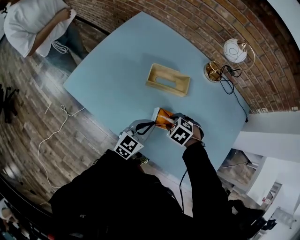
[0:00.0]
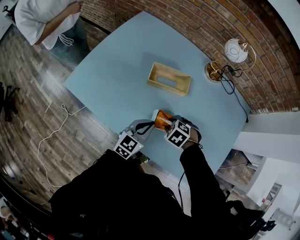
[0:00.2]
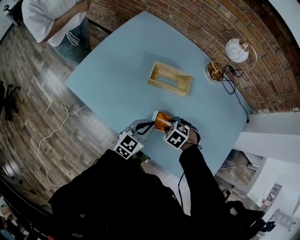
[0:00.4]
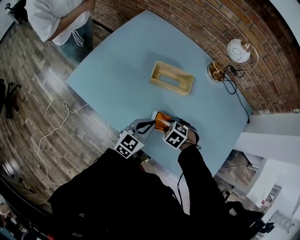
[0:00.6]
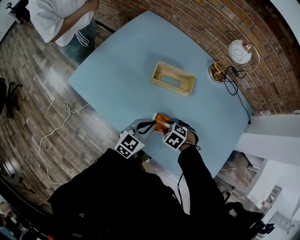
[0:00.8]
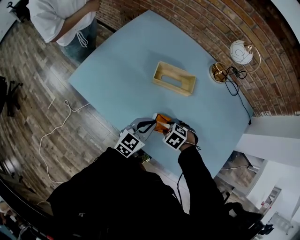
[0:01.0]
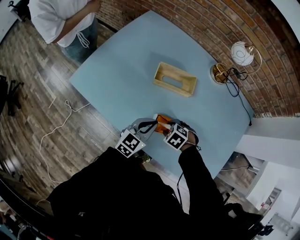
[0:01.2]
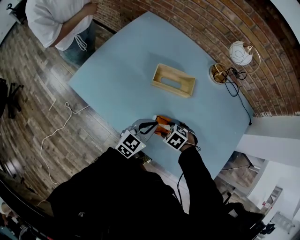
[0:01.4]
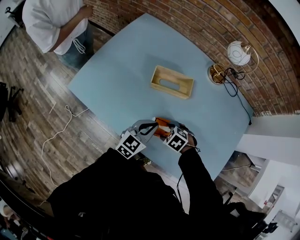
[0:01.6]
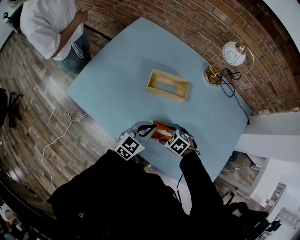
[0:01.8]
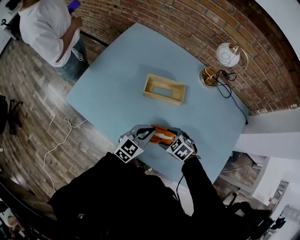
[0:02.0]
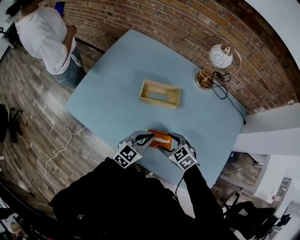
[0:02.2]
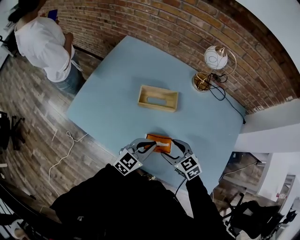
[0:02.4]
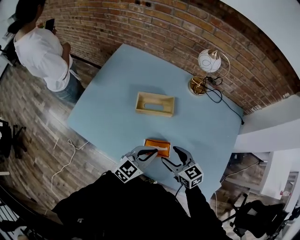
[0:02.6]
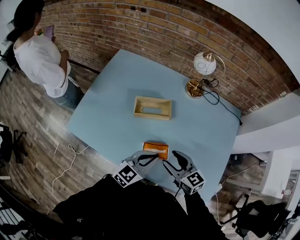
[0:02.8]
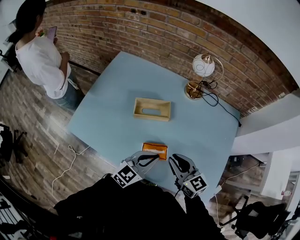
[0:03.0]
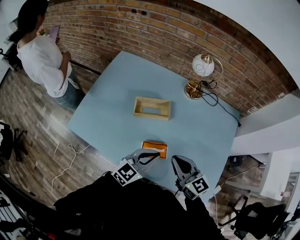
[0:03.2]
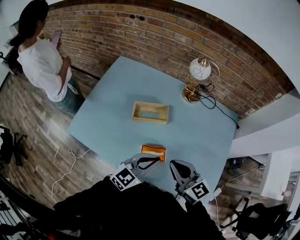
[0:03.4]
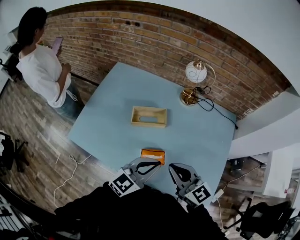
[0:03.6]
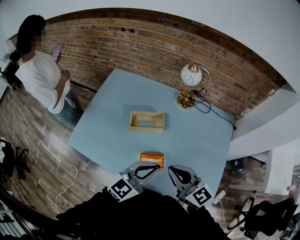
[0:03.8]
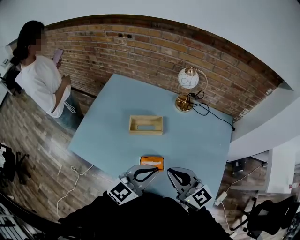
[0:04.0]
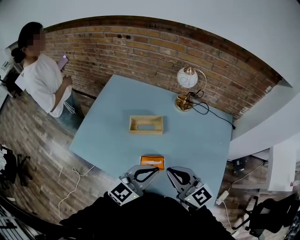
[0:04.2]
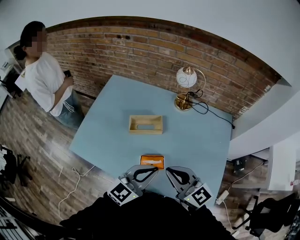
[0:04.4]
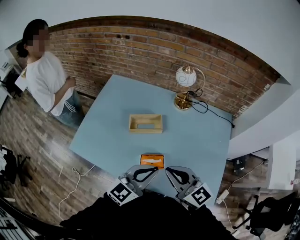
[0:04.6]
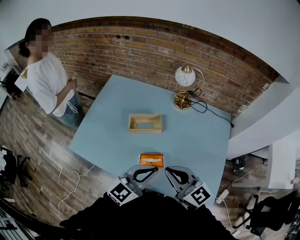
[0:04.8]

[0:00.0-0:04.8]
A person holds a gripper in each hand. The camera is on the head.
0:00.0 to 0:01.6: The right gripper shifts by some 5 cm, and opens.
0:01.6 to 0:03.2: The right gripper goes some 25 cm upward, points its fingers about 60 degrees further upward, and closes, while the left gripper goes about 15 cm upward.
0:03.2 to 0:04.8: Both grippers travel together upward and backward, roughly 10 cm.

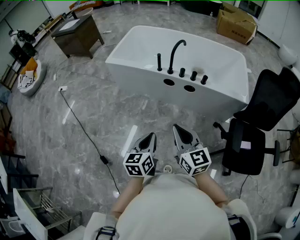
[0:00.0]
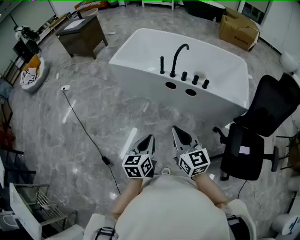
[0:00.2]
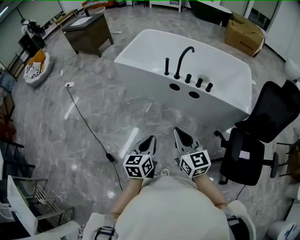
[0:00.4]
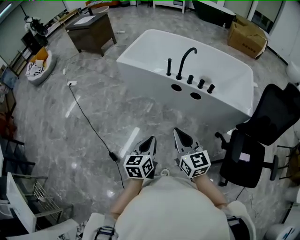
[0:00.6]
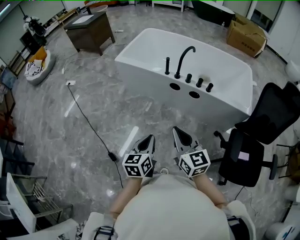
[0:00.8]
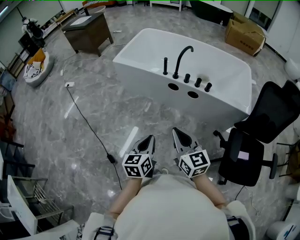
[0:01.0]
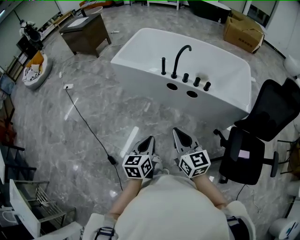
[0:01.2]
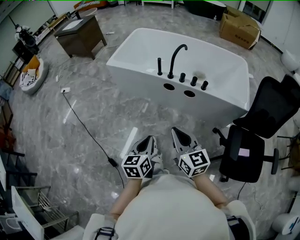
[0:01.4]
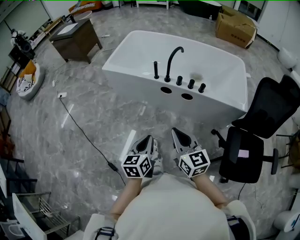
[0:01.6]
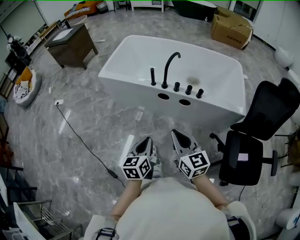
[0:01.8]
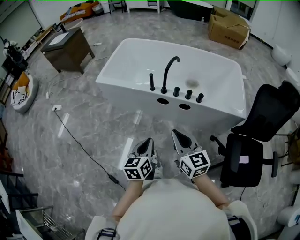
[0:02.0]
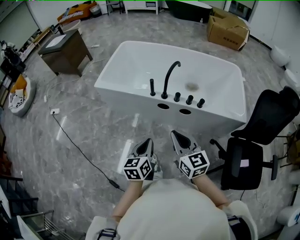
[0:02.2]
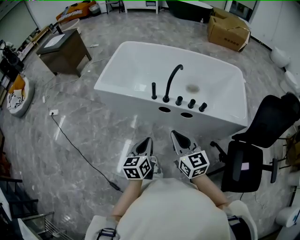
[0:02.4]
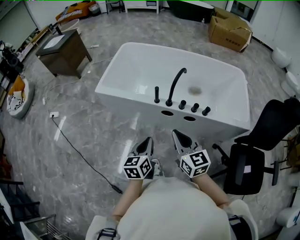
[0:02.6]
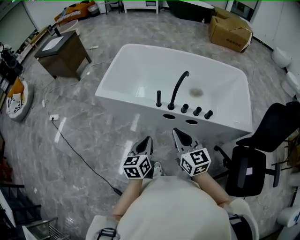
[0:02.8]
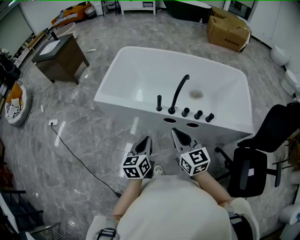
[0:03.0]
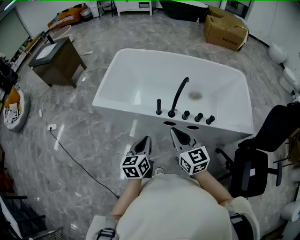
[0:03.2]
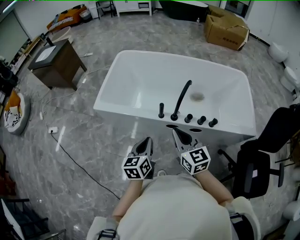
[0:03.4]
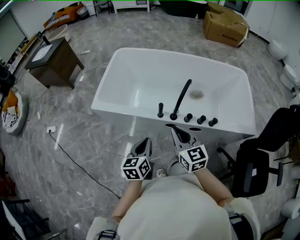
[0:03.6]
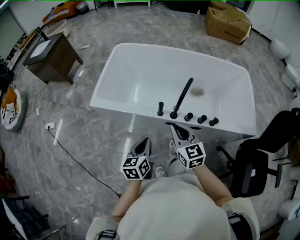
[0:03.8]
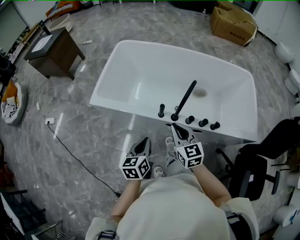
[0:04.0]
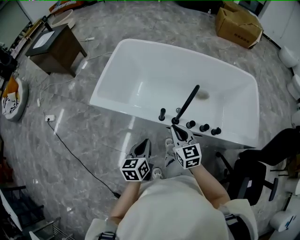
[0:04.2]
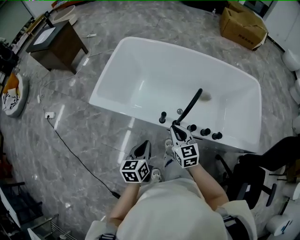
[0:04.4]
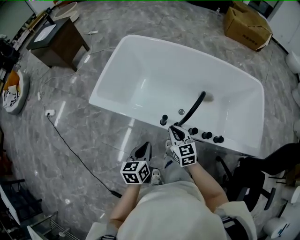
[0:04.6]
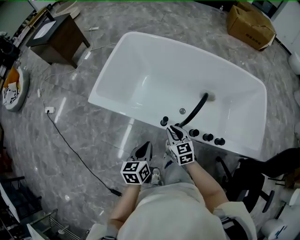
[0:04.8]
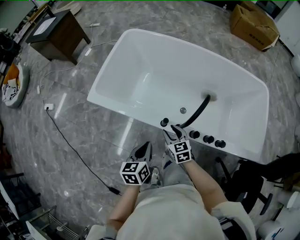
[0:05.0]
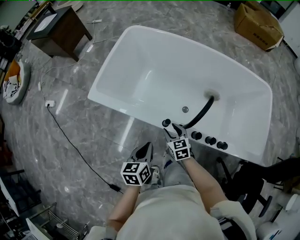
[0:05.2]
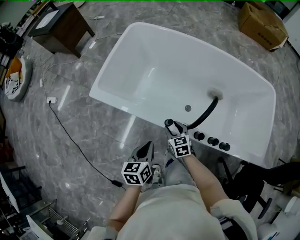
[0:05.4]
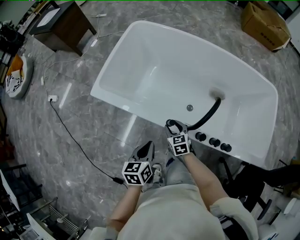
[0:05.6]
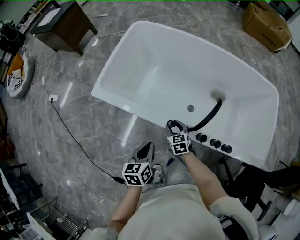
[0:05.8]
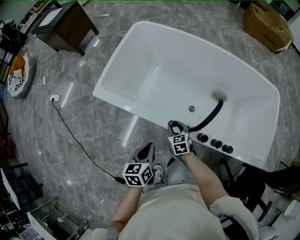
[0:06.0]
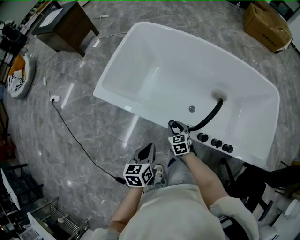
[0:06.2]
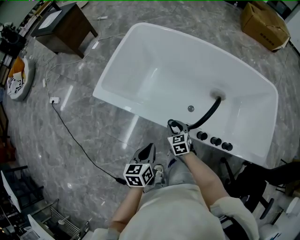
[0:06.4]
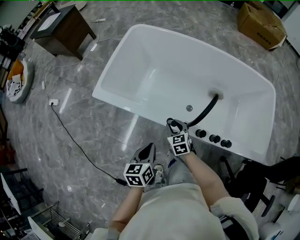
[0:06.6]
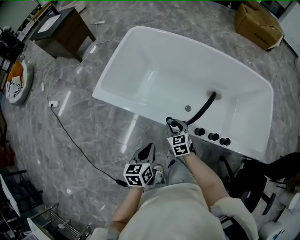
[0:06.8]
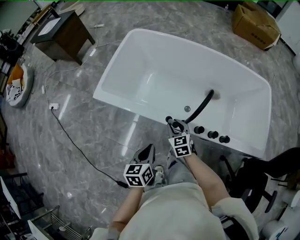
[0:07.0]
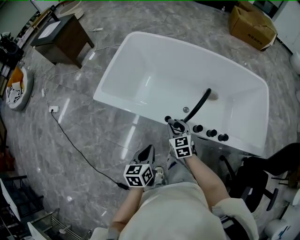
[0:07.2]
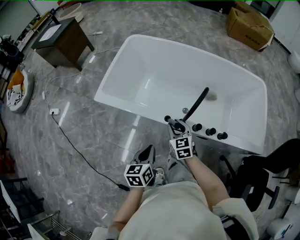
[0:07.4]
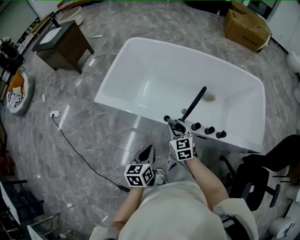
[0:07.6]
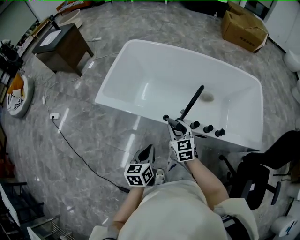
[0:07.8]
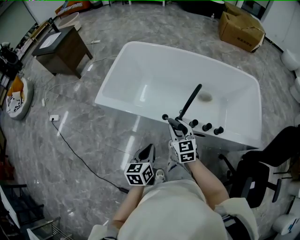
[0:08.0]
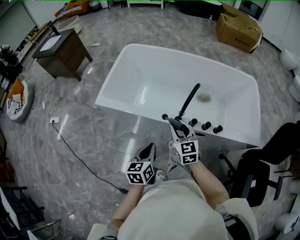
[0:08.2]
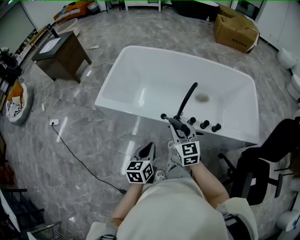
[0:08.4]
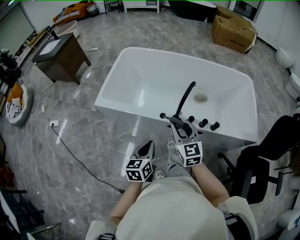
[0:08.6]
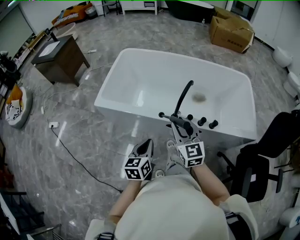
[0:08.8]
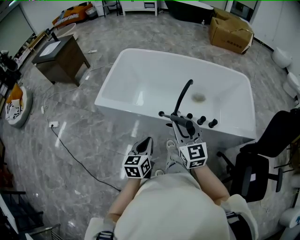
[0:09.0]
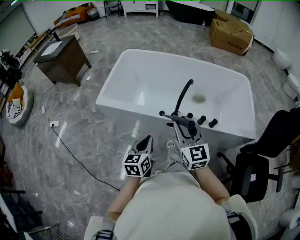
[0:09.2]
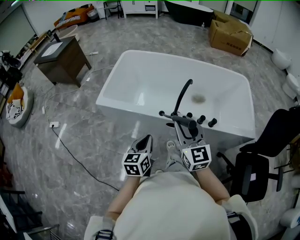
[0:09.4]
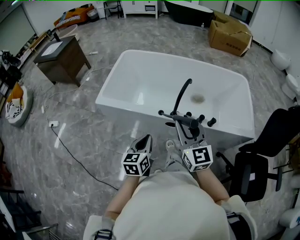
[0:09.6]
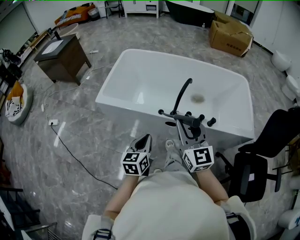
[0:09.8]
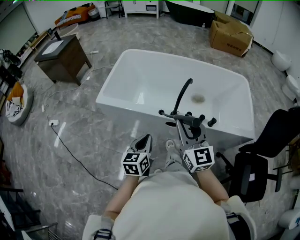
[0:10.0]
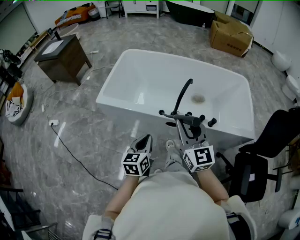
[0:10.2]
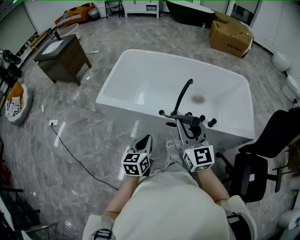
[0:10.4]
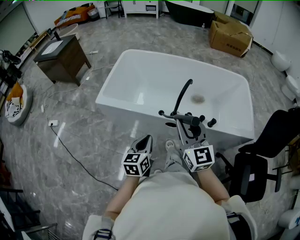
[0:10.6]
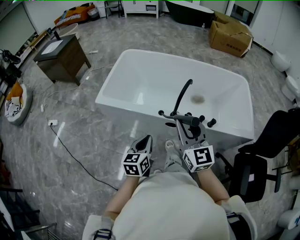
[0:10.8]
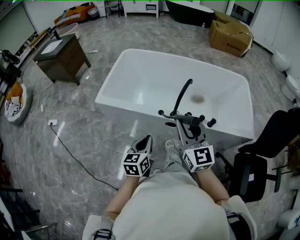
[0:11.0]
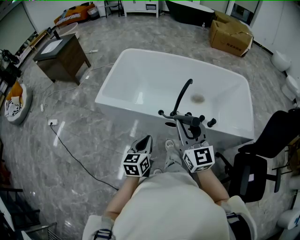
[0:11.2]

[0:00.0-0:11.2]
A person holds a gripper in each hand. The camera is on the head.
0:00.0 to 0:01.6: The right gripper moves about 5 cm. Meanwhile the left gripper travels forward by some 5 cm.
0:01.6 to 0:03.2: Both grippers move forward, approximately 30 cm.
0:03.2 to 0:04.8: The right gripper is displaced downward and forward by approximately 30 cm, and swivels approximately 20 degrees. Meanwhile the left gripper is displaced forward and downward by approximately 15 cm.
0:04.8 to 0:06.4: The right gripper travels downward by some 10 cm, and opens.
0:06.4 to 0:08.0: The right gripper is displaced upward and backward by some 20 cm, and turns by roughly 20 degrees, while the left gripper heads backward and upward, covering roughly 10 cm.
0:08.0 to 0:09.6: The right gripper goes approximately 20 cm upward and backward, and changes its angle by some 20 degrees, while the left gripper shifts by some 5 cm.
0:09.6 to 0:11.2: The grippers make only small movements.

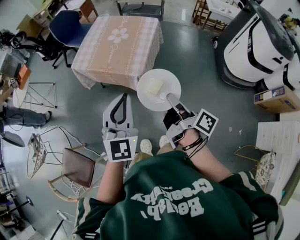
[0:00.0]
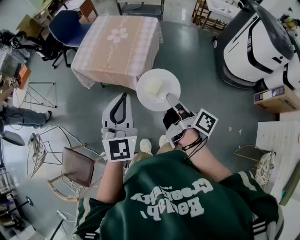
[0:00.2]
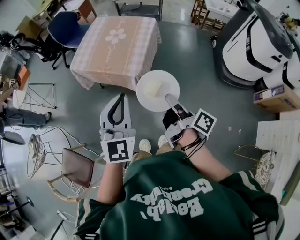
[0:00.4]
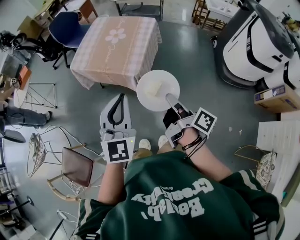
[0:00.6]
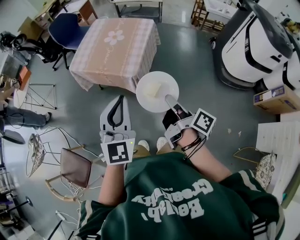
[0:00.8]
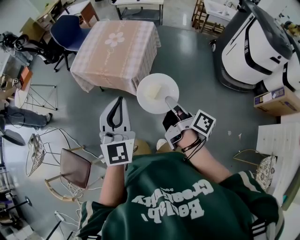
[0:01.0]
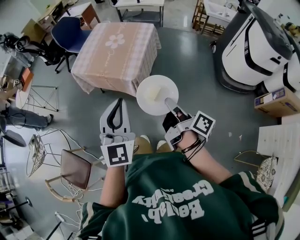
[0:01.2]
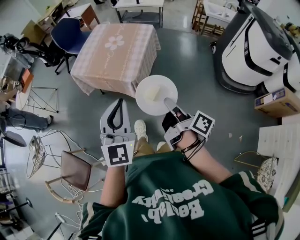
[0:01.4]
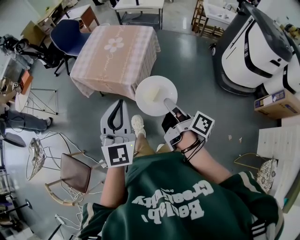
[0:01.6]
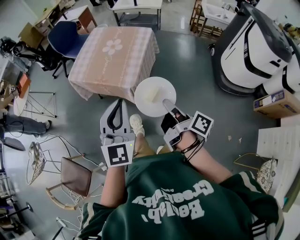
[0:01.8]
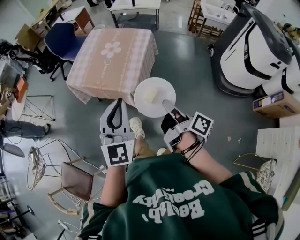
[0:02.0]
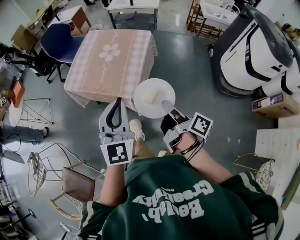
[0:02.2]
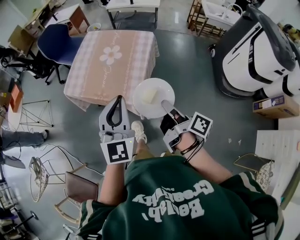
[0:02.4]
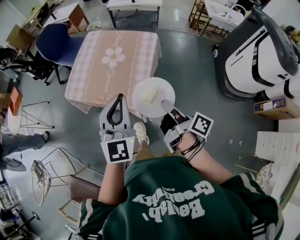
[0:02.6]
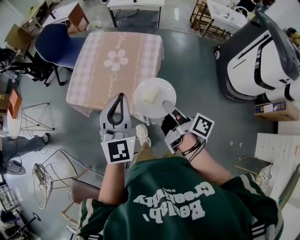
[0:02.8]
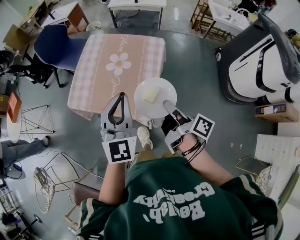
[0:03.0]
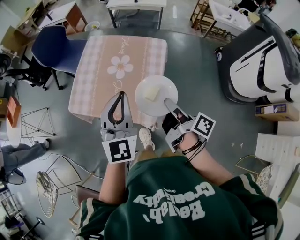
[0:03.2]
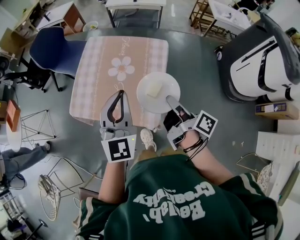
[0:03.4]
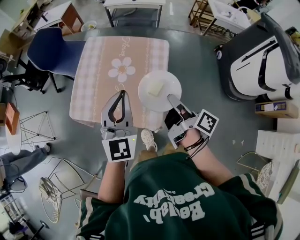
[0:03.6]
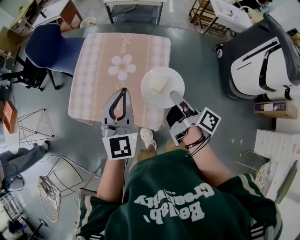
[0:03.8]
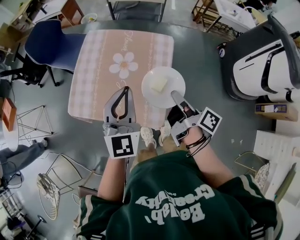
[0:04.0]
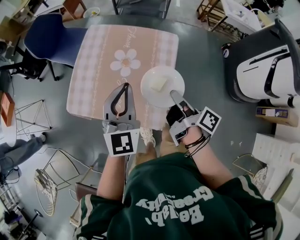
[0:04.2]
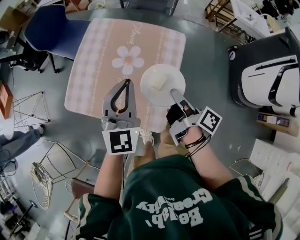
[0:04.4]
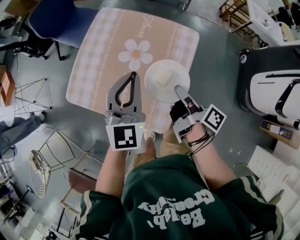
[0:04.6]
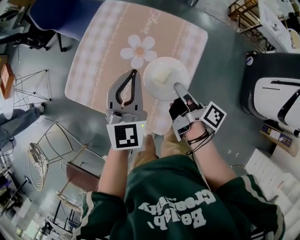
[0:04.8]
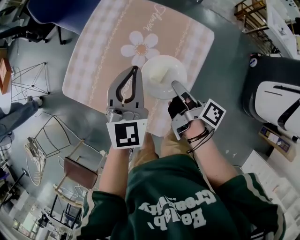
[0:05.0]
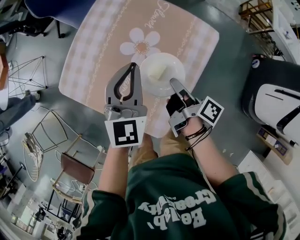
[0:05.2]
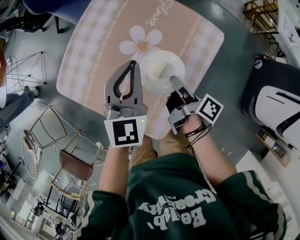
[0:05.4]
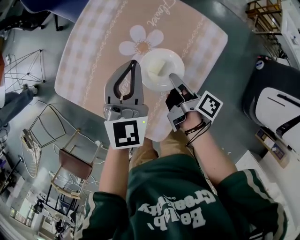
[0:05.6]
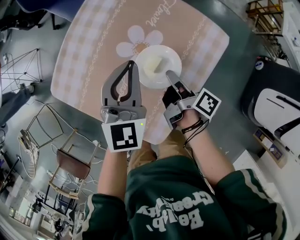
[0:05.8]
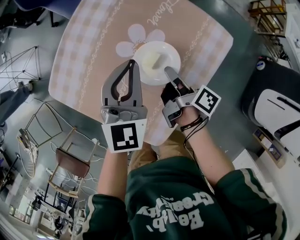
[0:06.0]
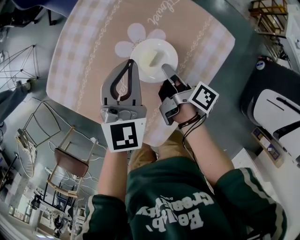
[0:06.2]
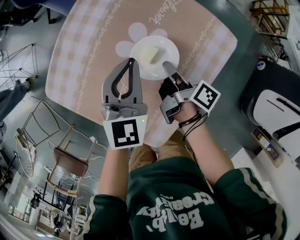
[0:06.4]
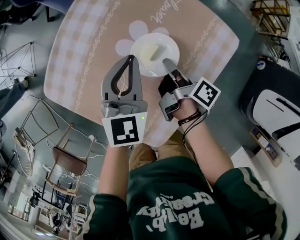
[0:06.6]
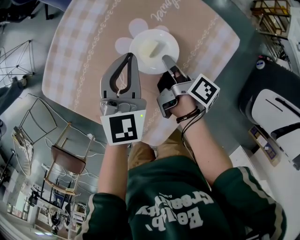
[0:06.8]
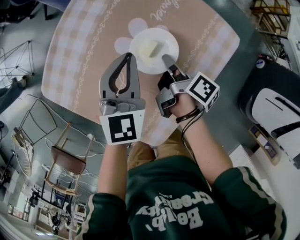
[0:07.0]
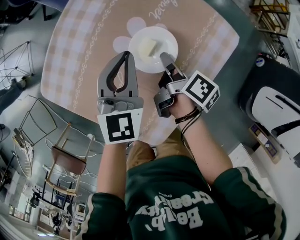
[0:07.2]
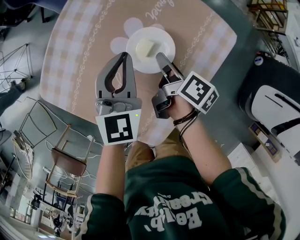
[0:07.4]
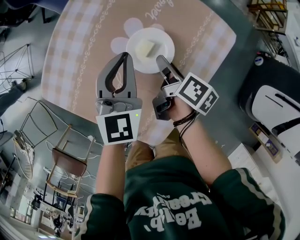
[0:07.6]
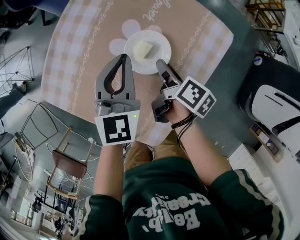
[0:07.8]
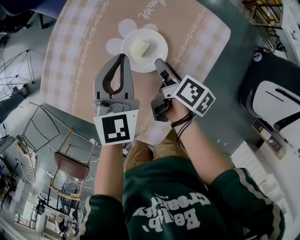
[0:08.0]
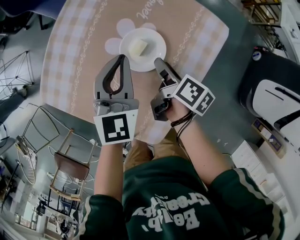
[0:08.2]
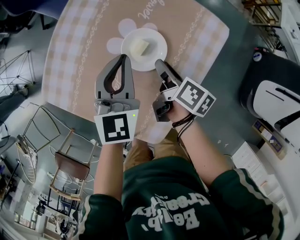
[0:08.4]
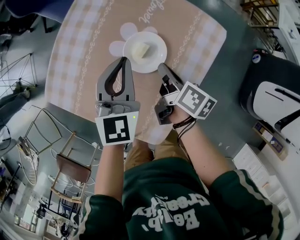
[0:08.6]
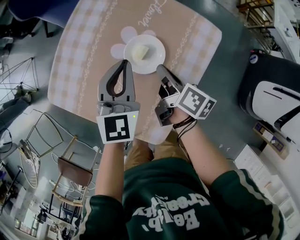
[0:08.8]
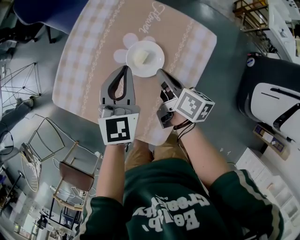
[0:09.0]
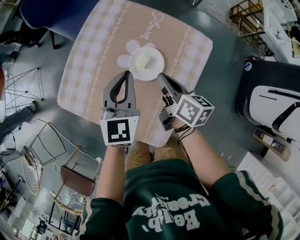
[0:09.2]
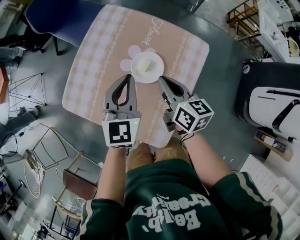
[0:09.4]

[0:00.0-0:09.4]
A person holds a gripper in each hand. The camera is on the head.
0:01.6 to 0:03.2: The left gripper changes place by approximately 40 cm.
0:03.2 to 0:04.8: The left gripper ends up about 20 cm from where it was.
0:04.8 to 0:06.2: The left gripper heads downward, covering some 10 cm.
0:07.8 to 0:09.4: The left gripper is displaced upward by some 10 cm.
